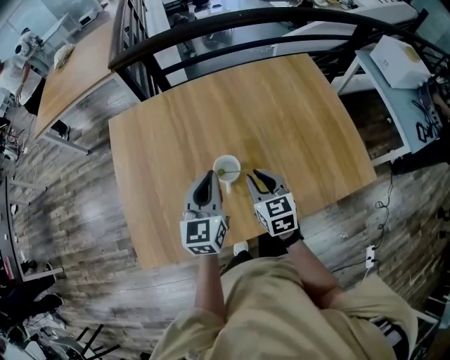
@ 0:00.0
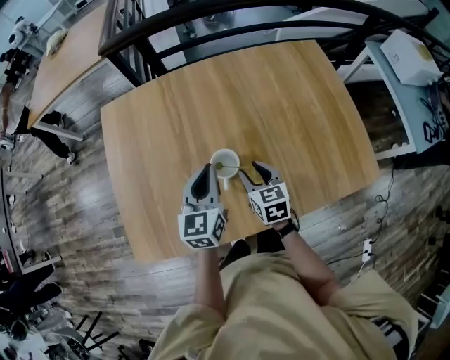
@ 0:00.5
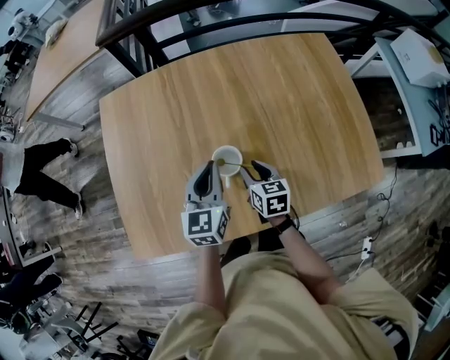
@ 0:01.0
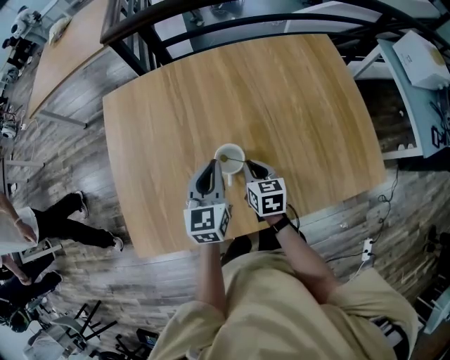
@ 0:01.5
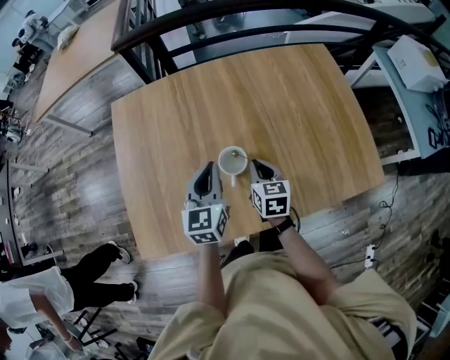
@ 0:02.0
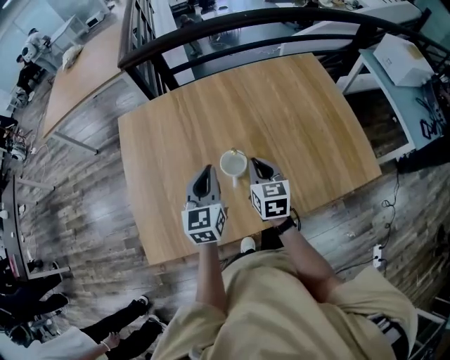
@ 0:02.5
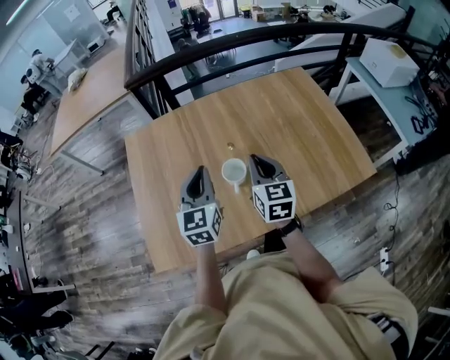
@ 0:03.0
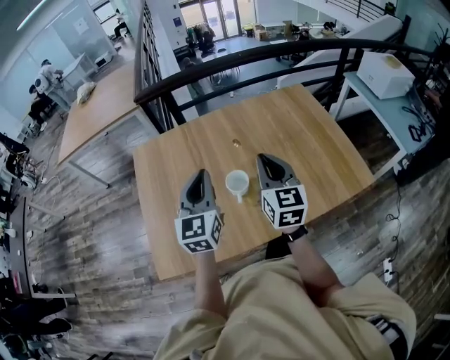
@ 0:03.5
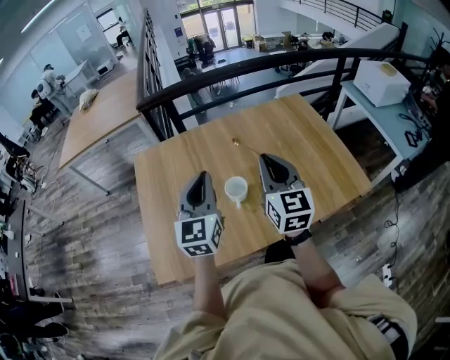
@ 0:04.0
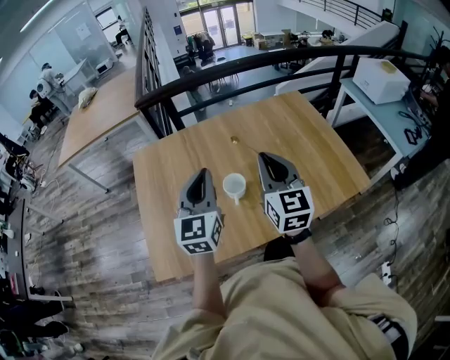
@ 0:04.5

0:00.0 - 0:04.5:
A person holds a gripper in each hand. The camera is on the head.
0:00.0 - 0:02.0: The right gripper goes about 5 cm downward, and opens, then closes again, while the left gripper shifts by some 5 cm.
0:02.0 - 0:04.5: The left gripper heads upward and backward, covering approximately 20 cm; the right gripper heads upward, covering about 30 cm, and tips its fingers upward by roughly 30 degrees.

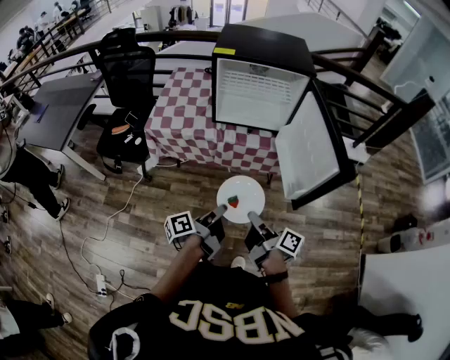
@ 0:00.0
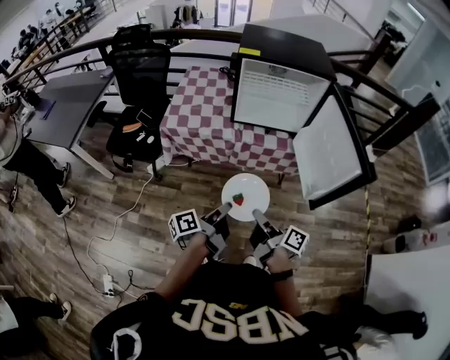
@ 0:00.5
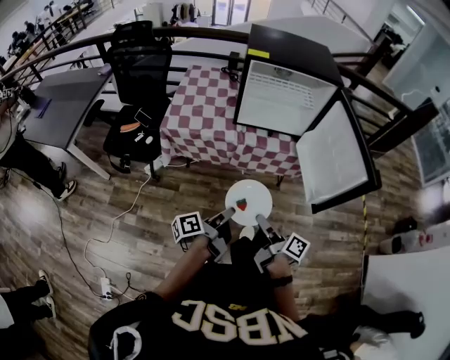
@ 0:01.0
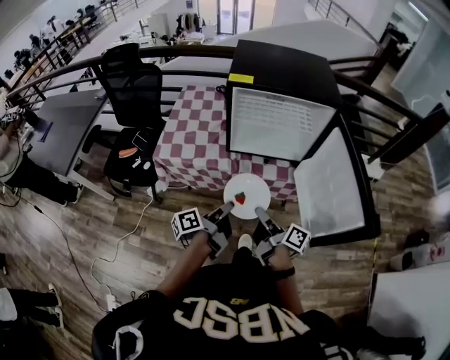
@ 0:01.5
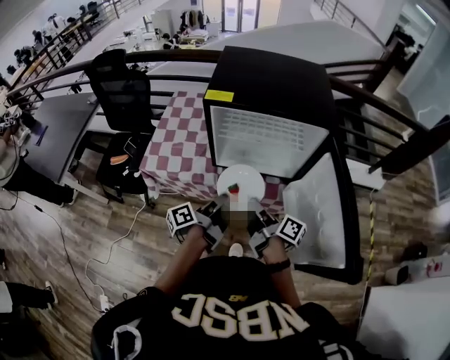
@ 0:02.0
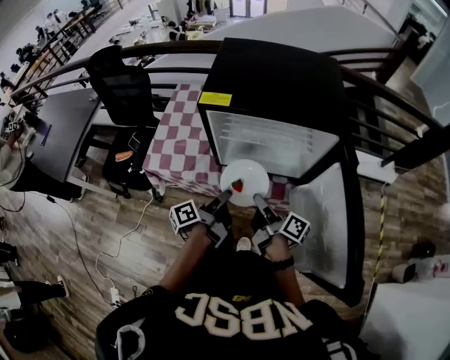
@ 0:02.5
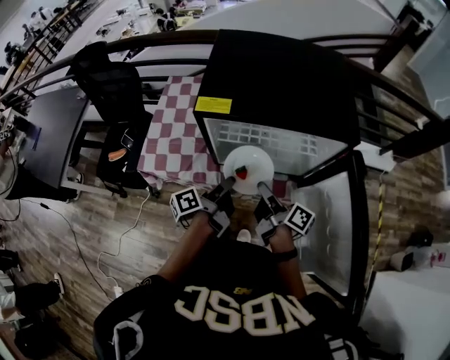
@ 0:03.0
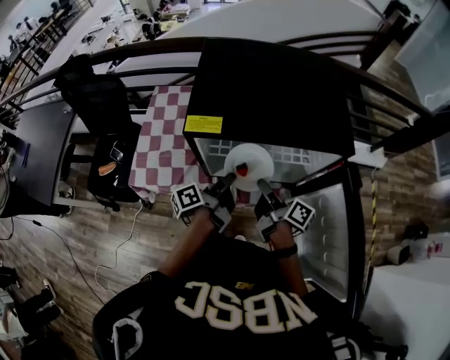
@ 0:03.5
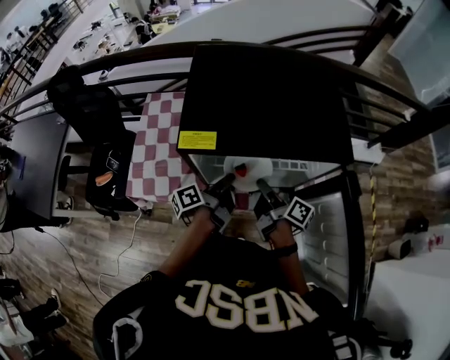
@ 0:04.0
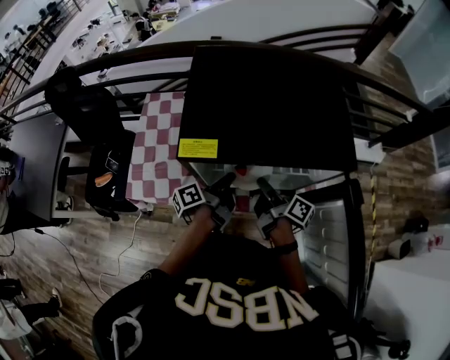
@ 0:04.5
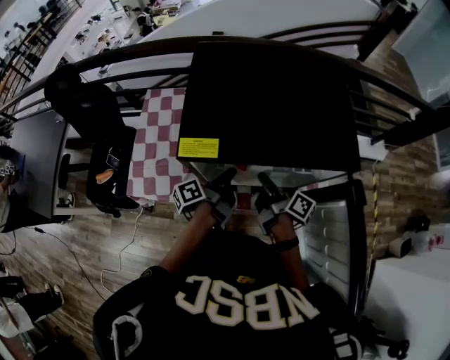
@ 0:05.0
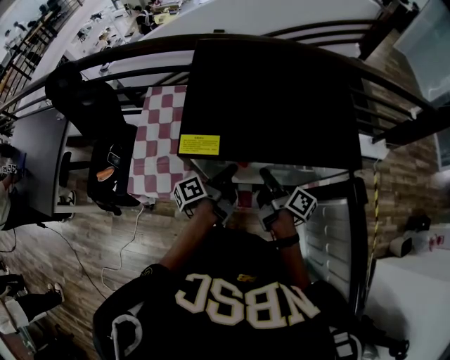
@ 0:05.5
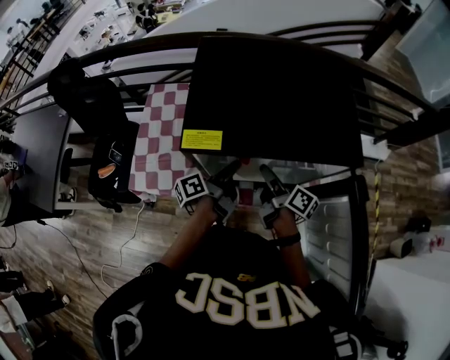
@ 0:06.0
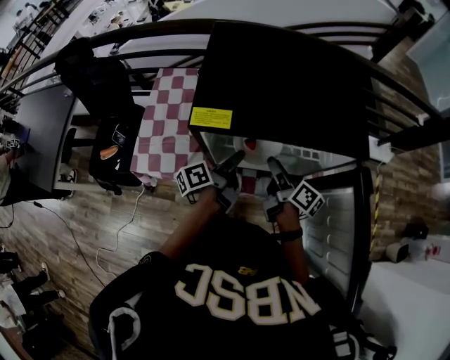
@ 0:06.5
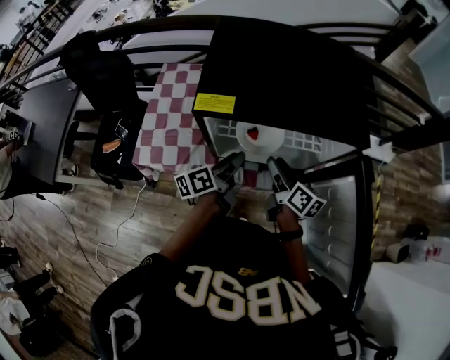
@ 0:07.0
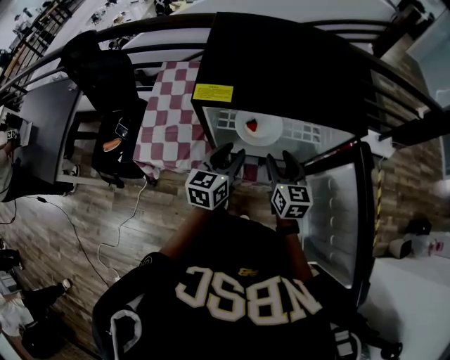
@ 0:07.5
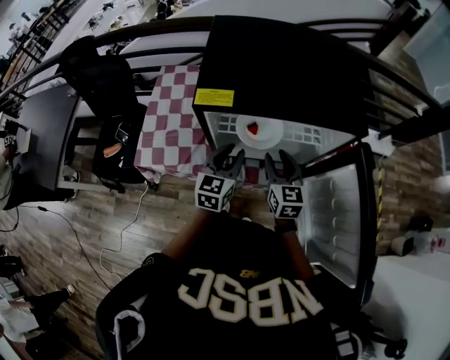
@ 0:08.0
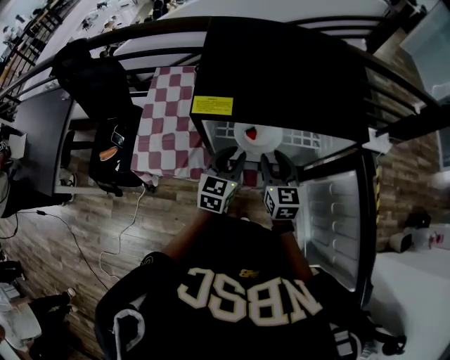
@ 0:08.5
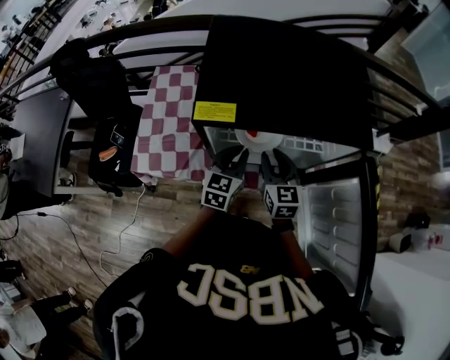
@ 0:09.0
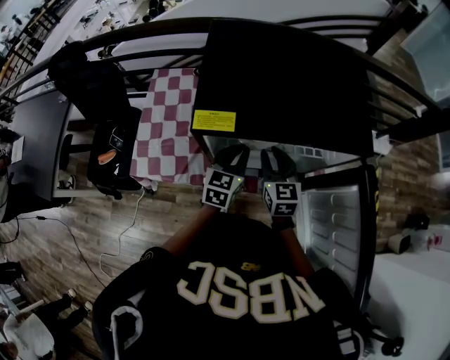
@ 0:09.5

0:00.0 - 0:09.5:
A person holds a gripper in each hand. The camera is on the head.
0:00.0 - 0:02.0: Both grippers travel together forward, some 30 cm.
0:02.0 - 0:04.0: Both grippers travel together forward, roughly 20 cm.
0:04.0 - 0:05.5: The grippers make only small movements.
0:05.5 - 0:07.5: The grippers both shift backward by about 5 cm. The left gripper rolls clockwise, seen from behind, by some 70 degrees, and opens its fingers, while the right gripper twists some 60 degrees counterclockwise, seen from behind, and opens.
0:07.5 - 0:09.5: Both grippers move forward, approximately 5 cm. The right gripper closes up; the left gripper closes its fingers.

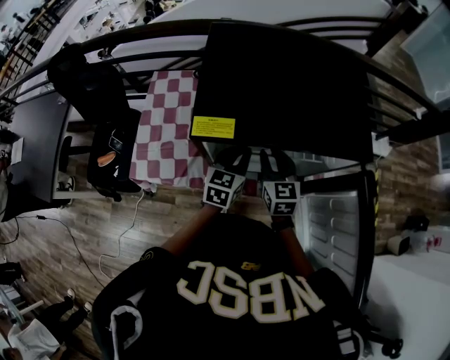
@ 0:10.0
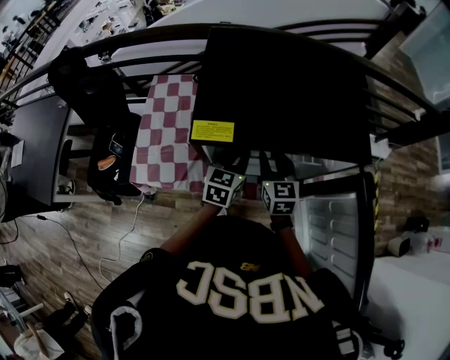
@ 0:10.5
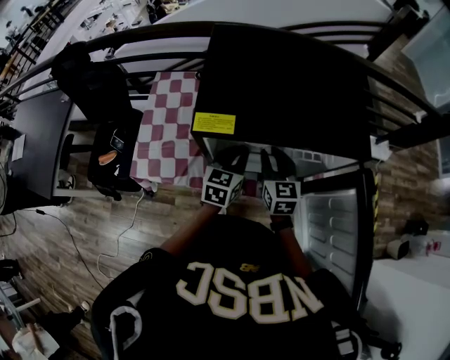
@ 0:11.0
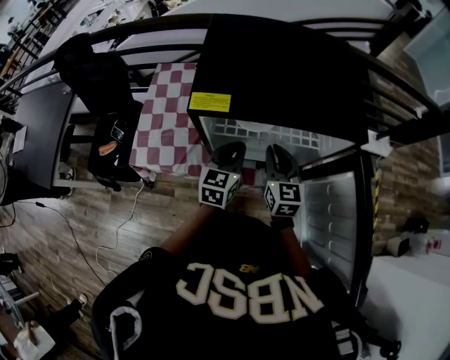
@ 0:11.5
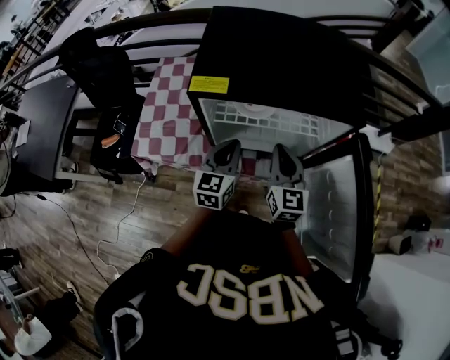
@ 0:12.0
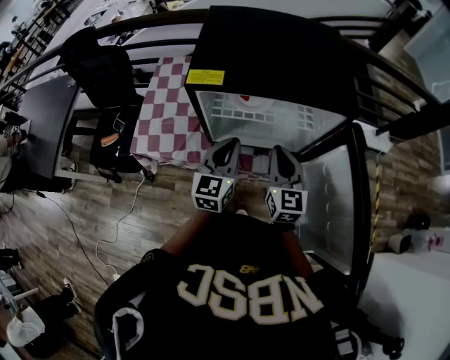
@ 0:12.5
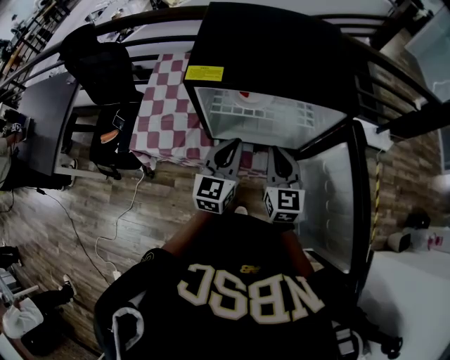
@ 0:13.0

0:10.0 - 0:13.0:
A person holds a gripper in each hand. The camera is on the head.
0:10.0 - 0:11.5: The right gripper moves about 5 cm.
0:11.5 - 0:13.0: The right gripper travels backward by about 10 cm. The left gripper is displaced backward and upward by about 10 cm.

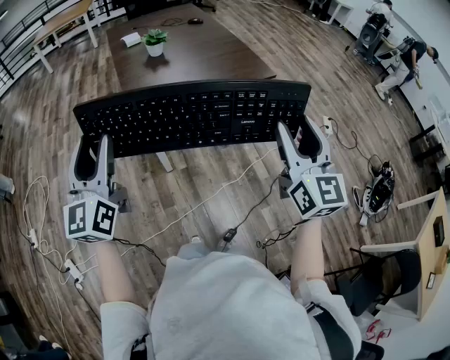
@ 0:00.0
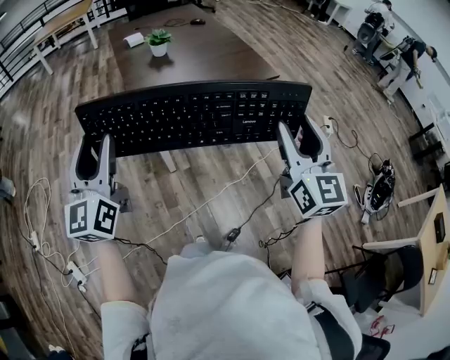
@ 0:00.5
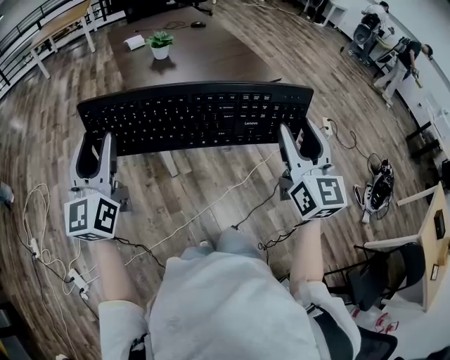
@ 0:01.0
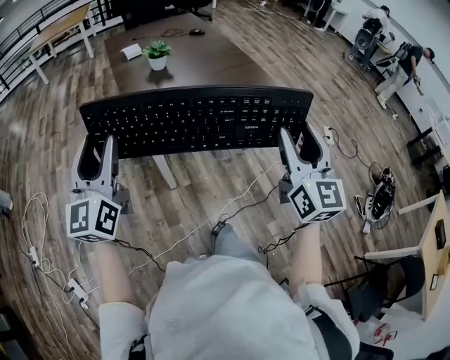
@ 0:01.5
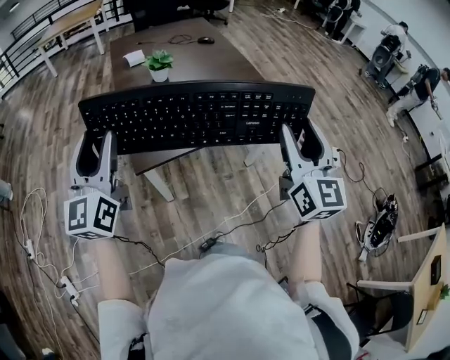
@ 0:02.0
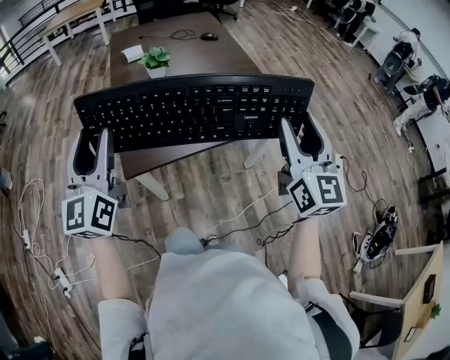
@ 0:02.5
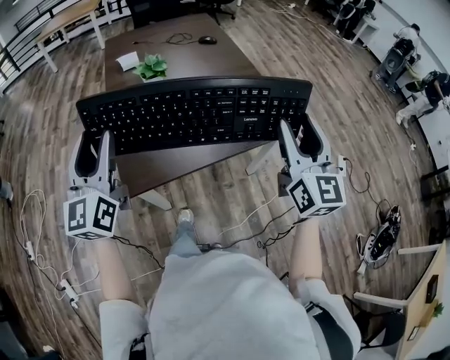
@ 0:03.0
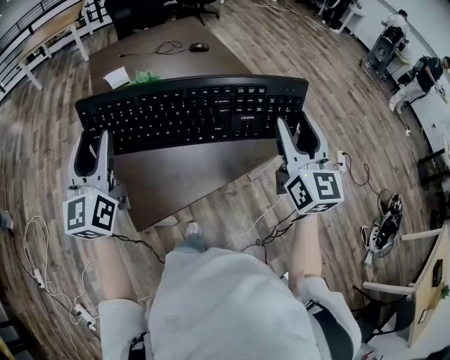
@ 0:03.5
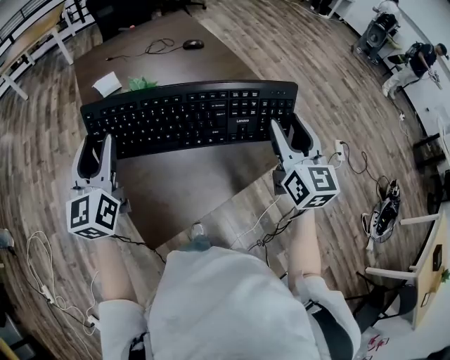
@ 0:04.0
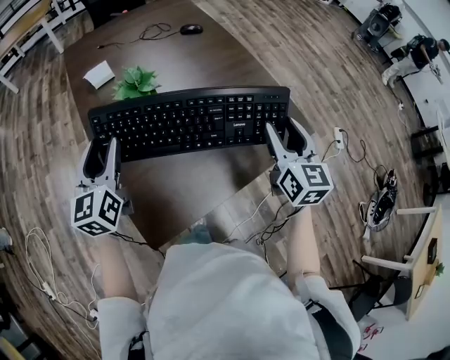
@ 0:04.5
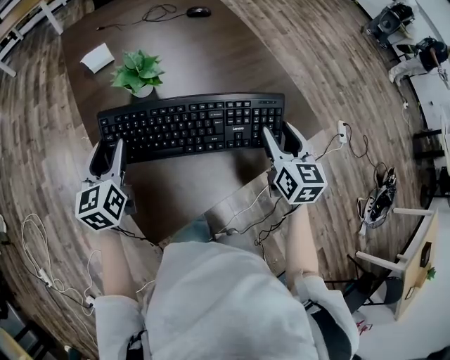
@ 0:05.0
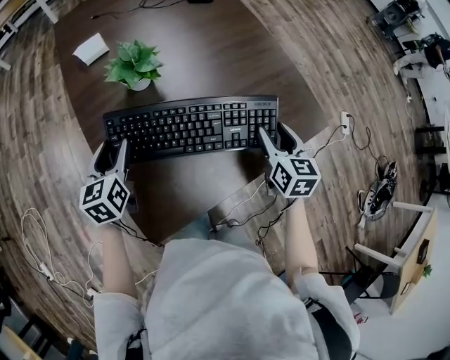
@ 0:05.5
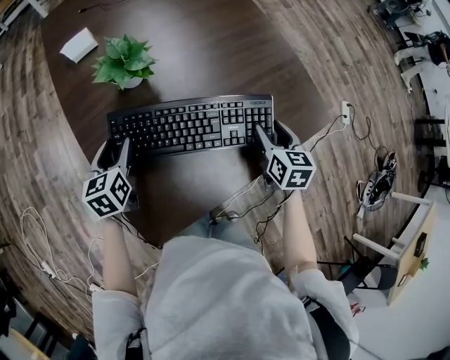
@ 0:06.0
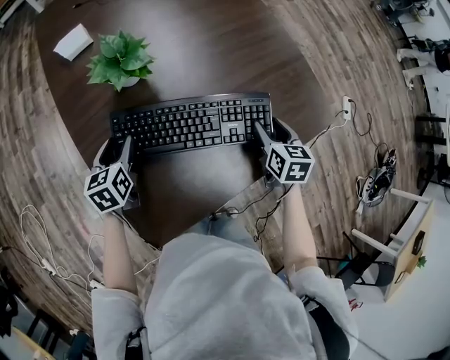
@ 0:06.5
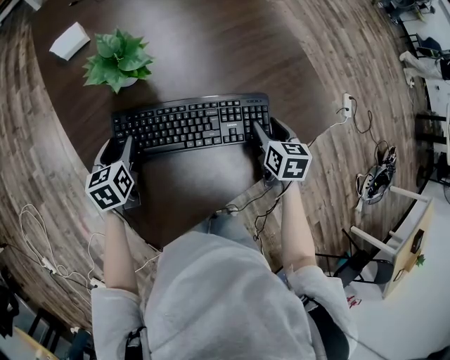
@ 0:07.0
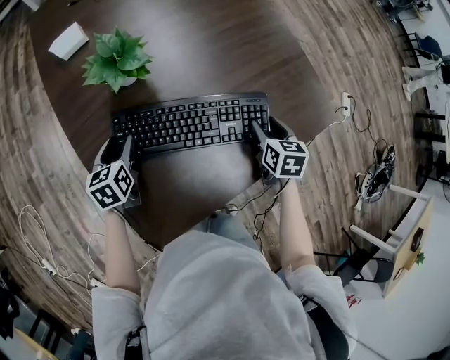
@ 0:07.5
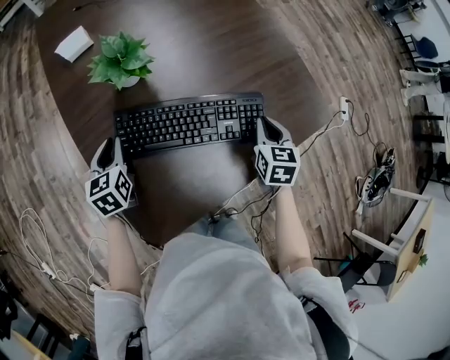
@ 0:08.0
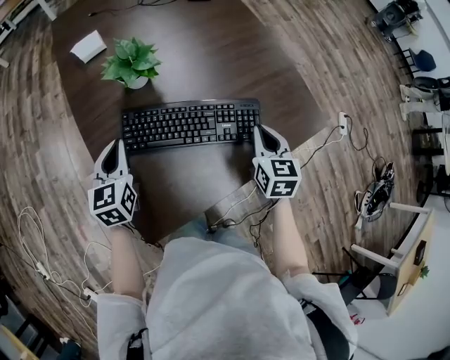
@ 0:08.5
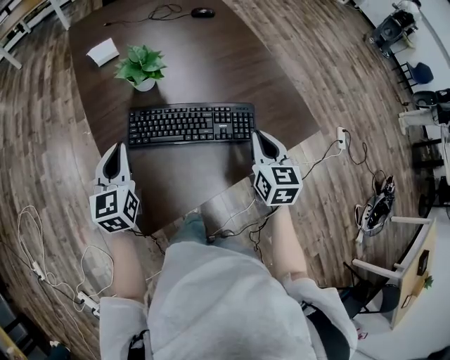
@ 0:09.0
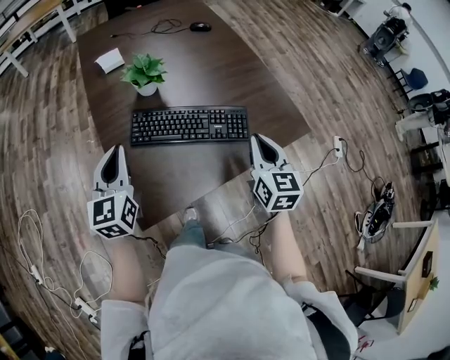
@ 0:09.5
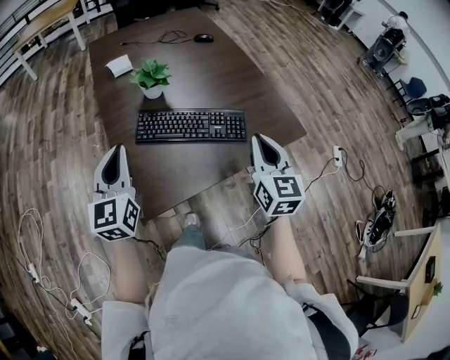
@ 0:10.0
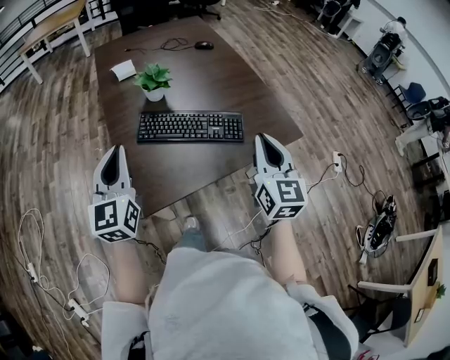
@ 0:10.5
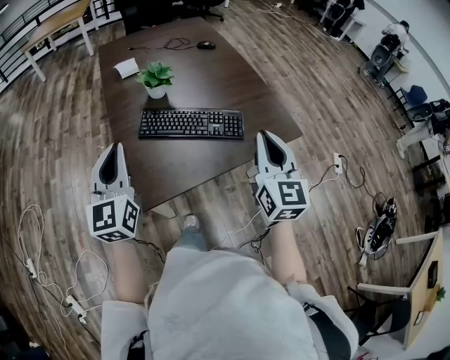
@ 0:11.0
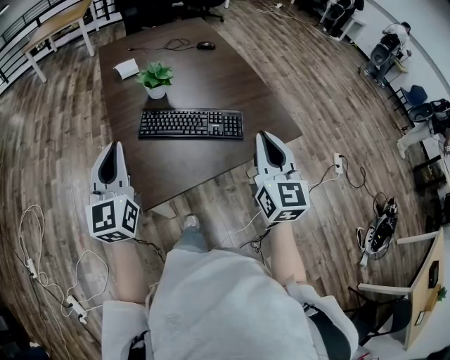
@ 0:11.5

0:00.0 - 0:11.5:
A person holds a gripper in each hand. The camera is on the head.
0:00.0 - 0:02.0: There are only small adjustments of the grippers.
0:04.0 - 0:06.0: Both grippers move downward, about 30 cm. The left gripper points its fingers some 40 degrees further downward. Meanwhile the right gripper tilts its fingers about 40 degrees downward.
0:06.0 - 0:07.5: The right gripper shifts some 5 cm downward. Meanwhile the left gripper shifts by about 5 cm.
0:07.5 - 0:09.5: The grippers both shift upward and backward by approximately 25 cm. The left gripper points its fingers some 30 degrees further upward, and closes, while the right gripper tilts its fingers approximately 30 degrees upward, and closes its fingers.
0:09.5 - 0:11.5: The right gripper moves upward and backward, about 15 cm, while the left gripper travels backward and upward by some 15 cm.
